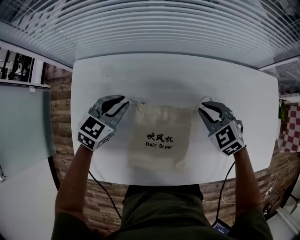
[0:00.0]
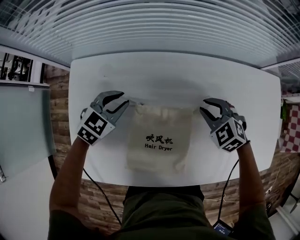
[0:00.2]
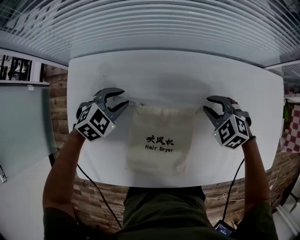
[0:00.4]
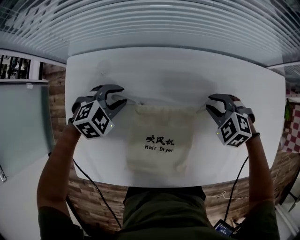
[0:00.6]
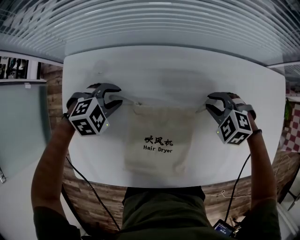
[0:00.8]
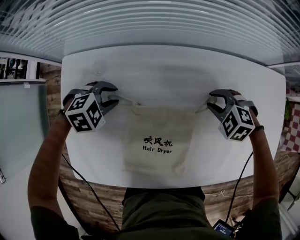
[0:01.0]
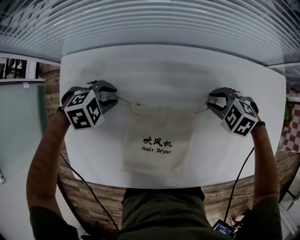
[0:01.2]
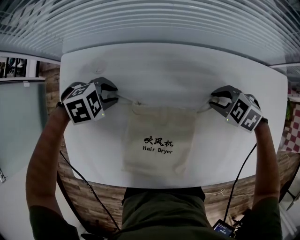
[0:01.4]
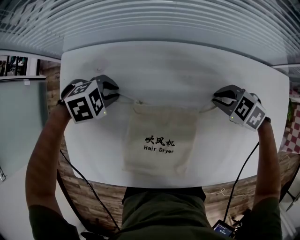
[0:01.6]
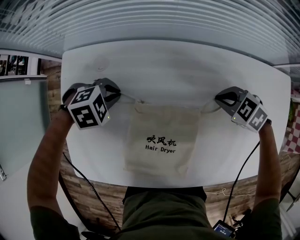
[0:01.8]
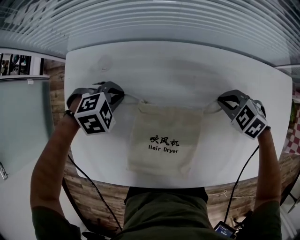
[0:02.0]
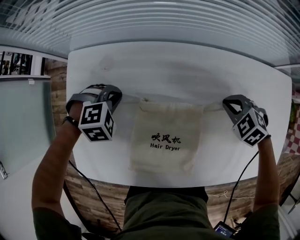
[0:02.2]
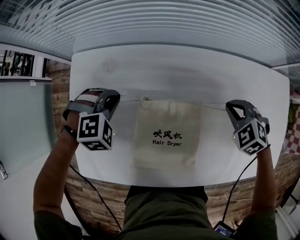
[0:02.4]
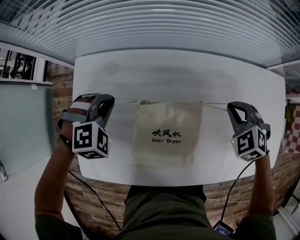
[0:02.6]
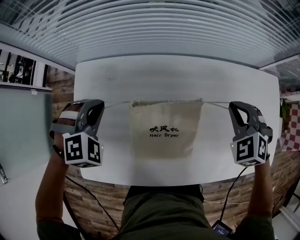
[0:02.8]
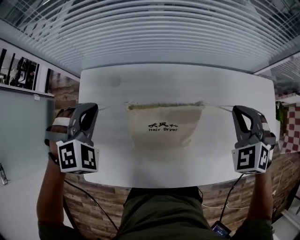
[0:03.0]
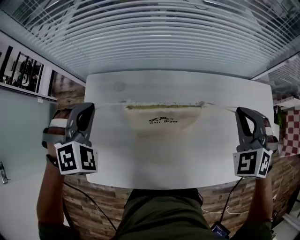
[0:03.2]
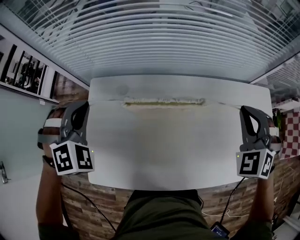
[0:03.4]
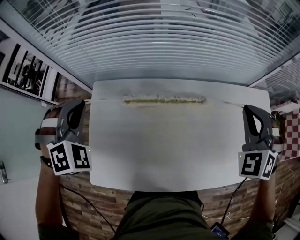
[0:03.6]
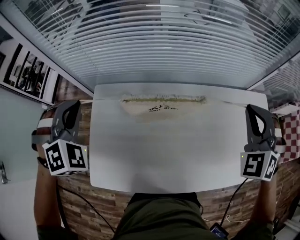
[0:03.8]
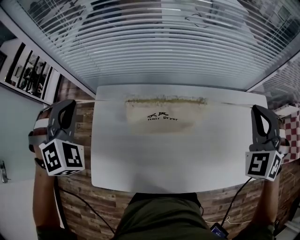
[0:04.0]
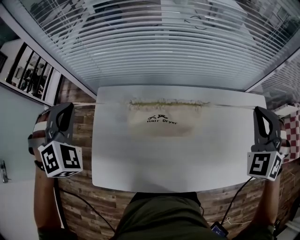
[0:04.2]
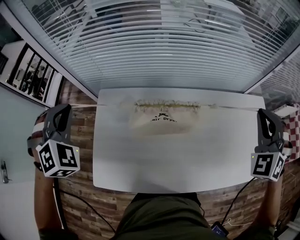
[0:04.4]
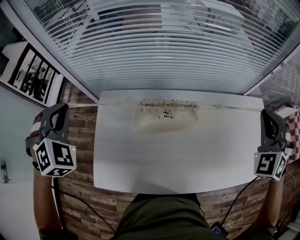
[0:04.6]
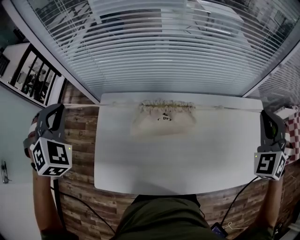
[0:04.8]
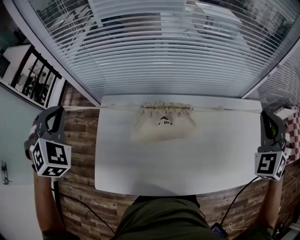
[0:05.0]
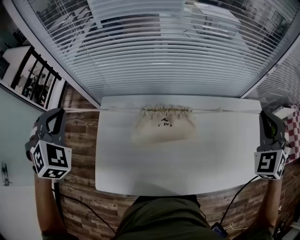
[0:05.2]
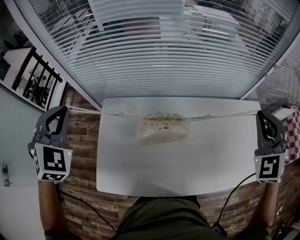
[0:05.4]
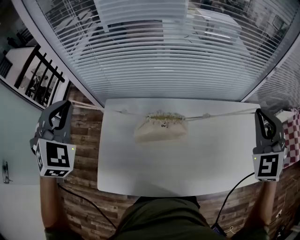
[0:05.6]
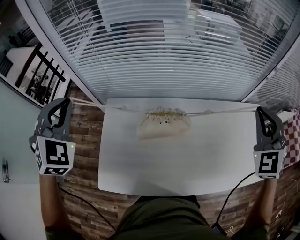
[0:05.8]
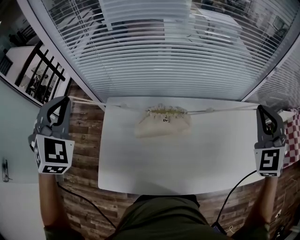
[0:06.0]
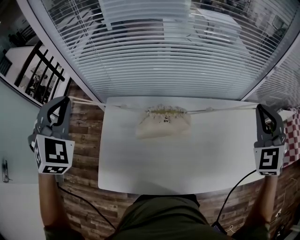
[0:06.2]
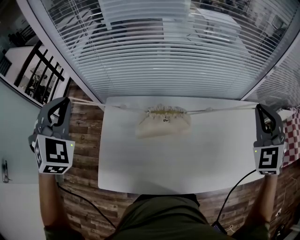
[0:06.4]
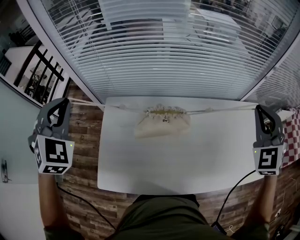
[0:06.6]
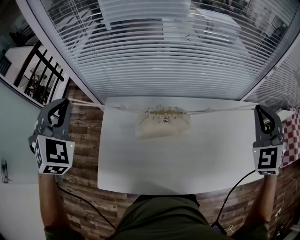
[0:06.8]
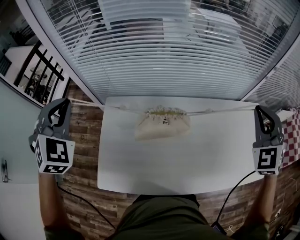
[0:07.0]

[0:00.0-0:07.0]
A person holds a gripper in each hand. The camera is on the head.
0:00.0 to 0:01.4: The grippers both shift downward by about 5 cm. The right gripper turns by approximately 30 degrees. Meanwhile the left gripper angles its fingers downward, by roughly 30 degrees.
0:01.4 to 0:02.8: Both grippers travel together upward, roughly 15 cm. The right gripper rotates roughly 40 degrees, and closes its fingers, while the left gripper swivels some 40 degrees, and closes.
0:02.8 to 0:04.2: The left gripper goes roughly 25 cm upward and to the left, and changes its angle by approximately 30 degrees. The right gripper shifts roughly 20 cm upward, and changes its angle by approximately 30 degrees.
0:04.2 to 0:05.6: Both grippers travel together upward, approximately 10 cm. The left gripper turns by about 20 degrees.
0:05.6 to 0:07.0: The grippers stay close to where they were, moving slightly.

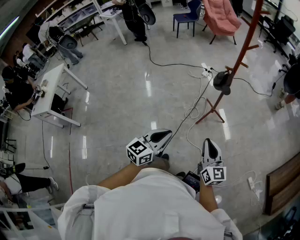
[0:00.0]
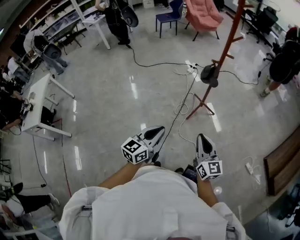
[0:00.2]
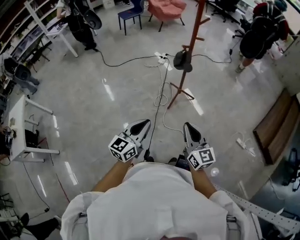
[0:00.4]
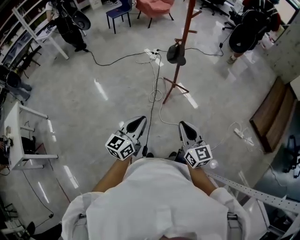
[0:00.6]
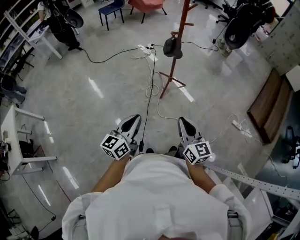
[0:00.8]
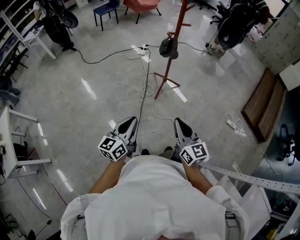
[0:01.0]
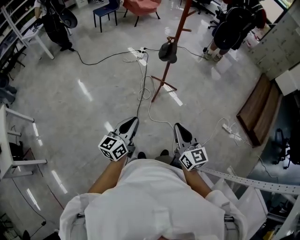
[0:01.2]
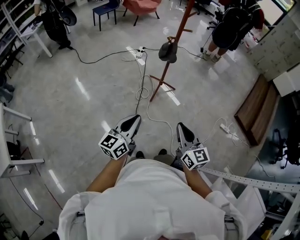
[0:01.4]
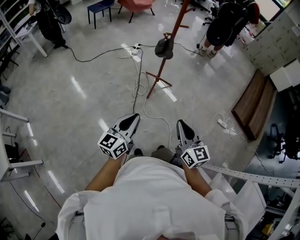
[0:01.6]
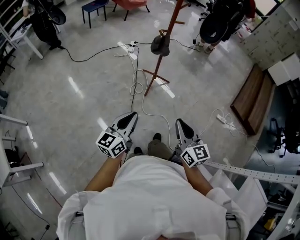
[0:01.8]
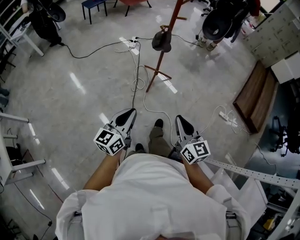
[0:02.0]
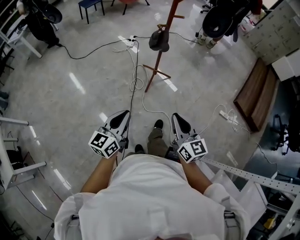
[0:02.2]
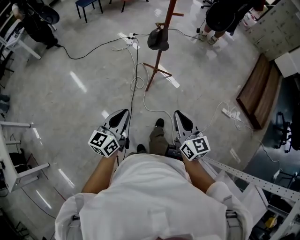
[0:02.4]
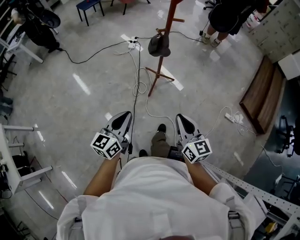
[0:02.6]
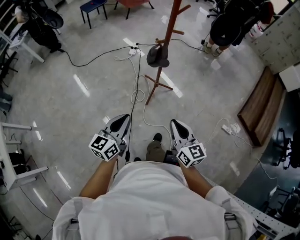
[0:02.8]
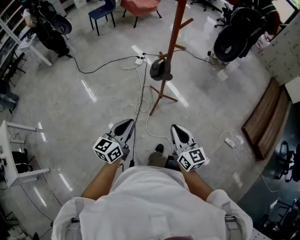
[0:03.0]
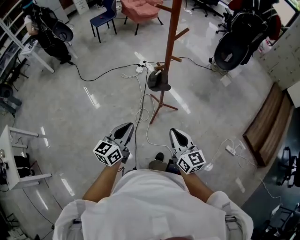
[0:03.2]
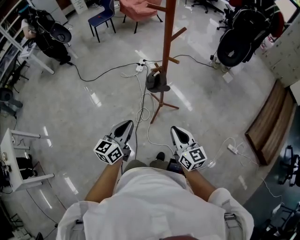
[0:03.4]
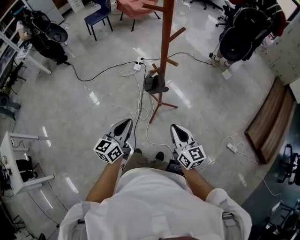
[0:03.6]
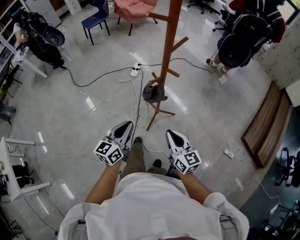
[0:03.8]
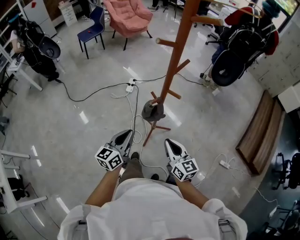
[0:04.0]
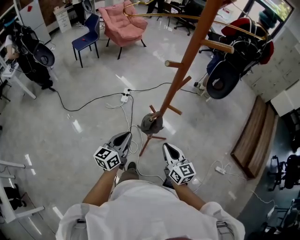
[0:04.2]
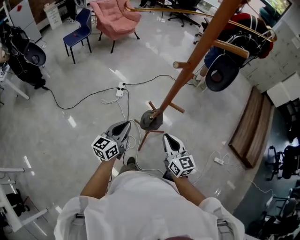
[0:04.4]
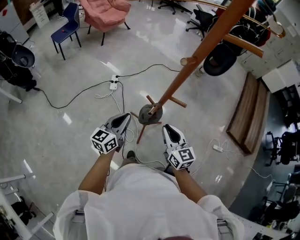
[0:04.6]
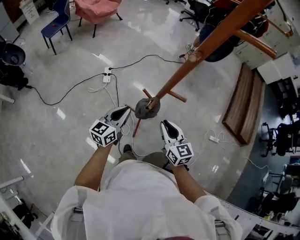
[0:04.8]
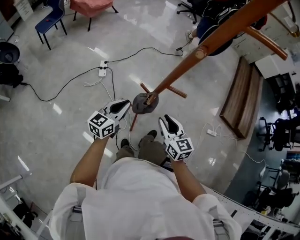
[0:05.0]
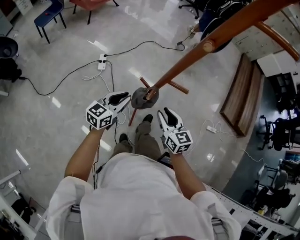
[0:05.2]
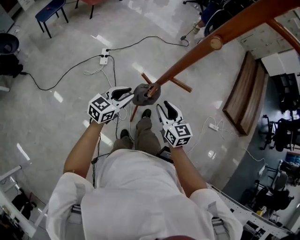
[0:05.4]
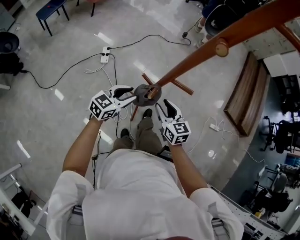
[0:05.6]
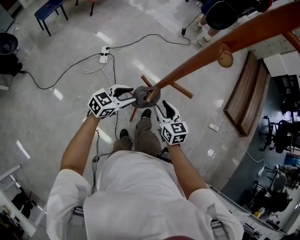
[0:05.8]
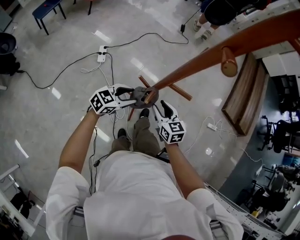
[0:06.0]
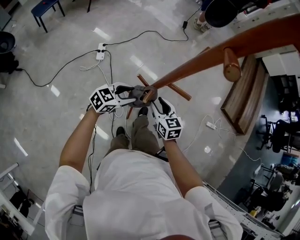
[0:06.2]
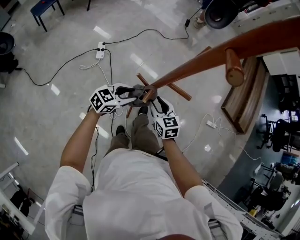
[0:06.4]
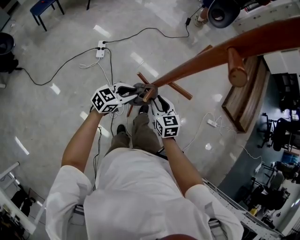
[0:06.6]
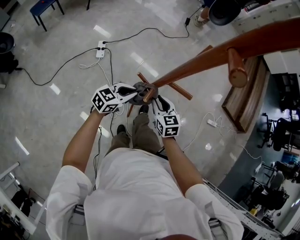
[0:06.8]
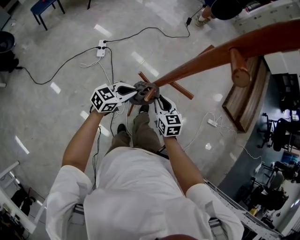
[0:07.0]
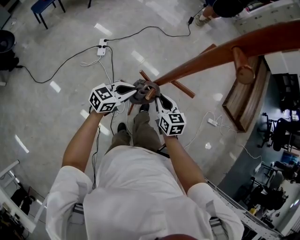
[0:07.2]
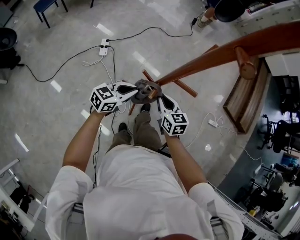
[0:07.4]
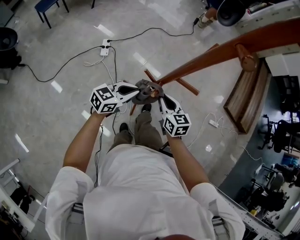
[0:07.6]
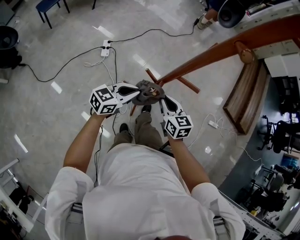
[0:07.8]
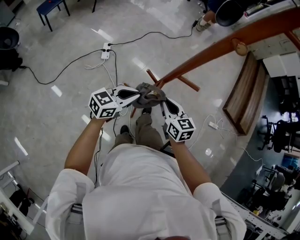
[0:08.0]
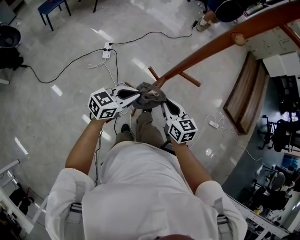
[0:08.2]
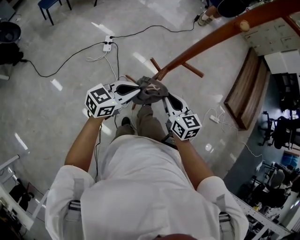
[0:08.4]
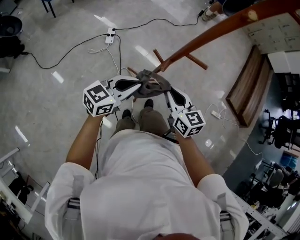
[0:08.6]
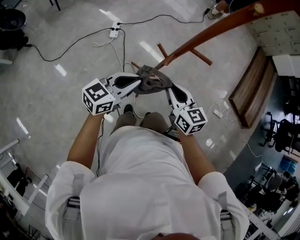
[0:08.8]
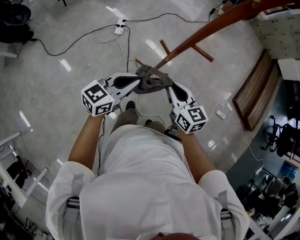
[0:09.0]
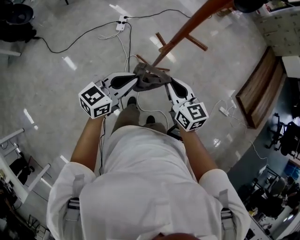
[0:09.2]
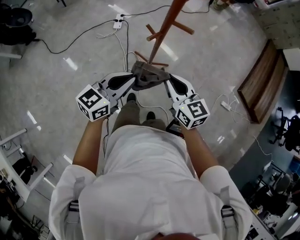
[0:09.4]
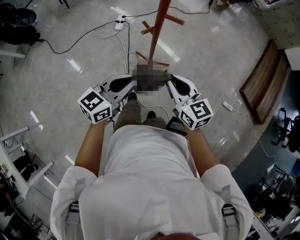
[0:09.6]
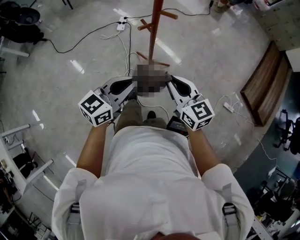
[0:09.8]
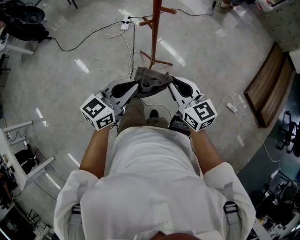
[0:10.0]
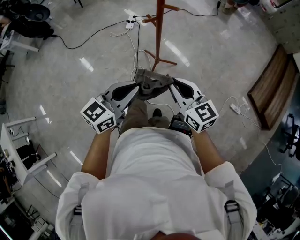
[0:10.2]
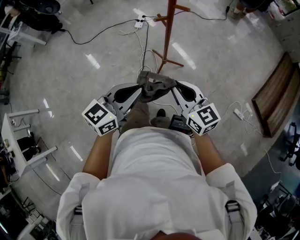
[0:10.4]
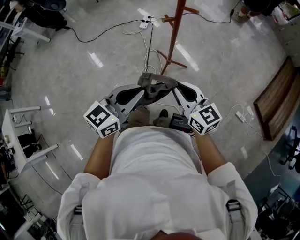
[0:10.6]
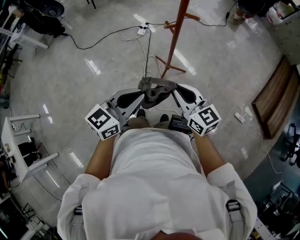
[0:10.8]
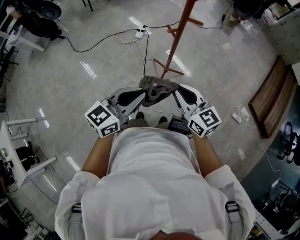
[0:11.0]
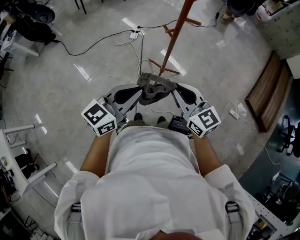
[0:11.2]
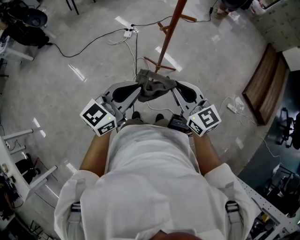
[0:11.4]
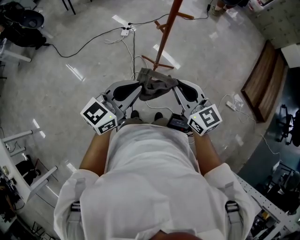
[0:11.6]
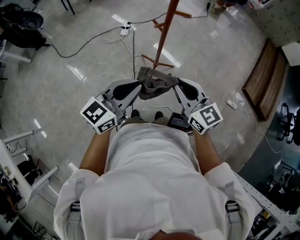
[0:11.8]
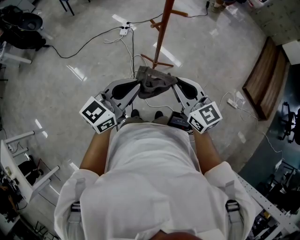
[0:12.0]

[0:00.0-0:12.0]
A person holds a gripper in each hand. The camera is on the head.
0:00.0 to 0:01.6: The left gripper moves to the left, about 10 cm, while the right gripper is displaced backward and to the left by some 15 cm.
0:01.6 to 0:03.0: Both grippers travel together forward, some 25 cm.
0:03.0 to 0:04.4: Both grippers travel together forward, approximately 35 cm.
0:04.4 to 0:06.0: Both grippers travel together downward, about 15 cm. The left gripper turns by about 50 degrees, and opens. Meanwhile the right gripper changes its angle by some 20 degrees, and opens its fingers.
0:06.0 to 0:07.6: The left gripper closes up, while the right gripper closes its fingers.
0:07.6 to 0:09.0: The two grippers go about 15 cm backward and upward.
0:09.0 to 0:10.4: Both grippers move backward and to the right, approximately 25 cm. The right gripper changes its angle by roughly 20 degrees.
0:10.4 to 0:12.0: The left gripper heads to the left, covering about 5 cm.

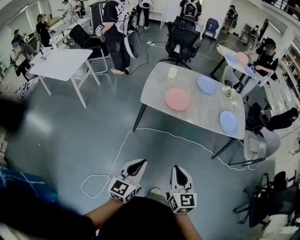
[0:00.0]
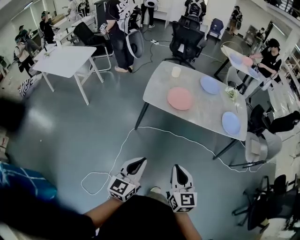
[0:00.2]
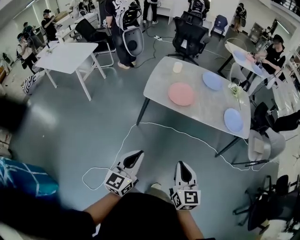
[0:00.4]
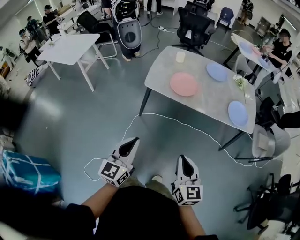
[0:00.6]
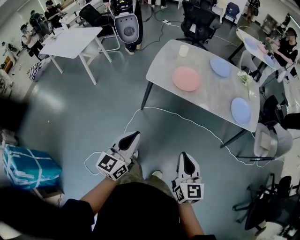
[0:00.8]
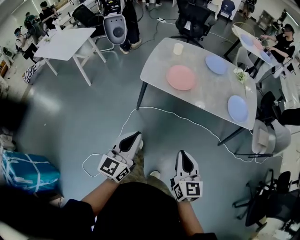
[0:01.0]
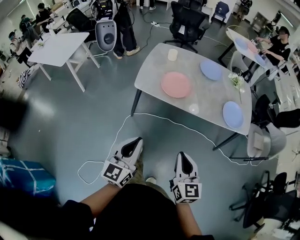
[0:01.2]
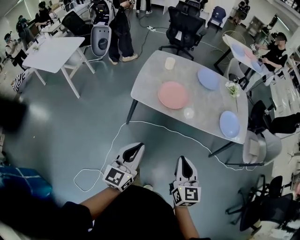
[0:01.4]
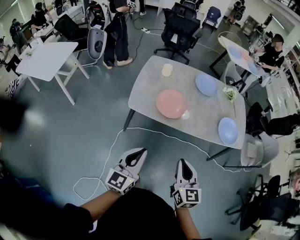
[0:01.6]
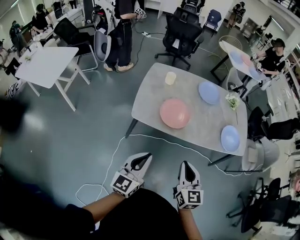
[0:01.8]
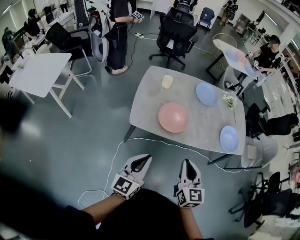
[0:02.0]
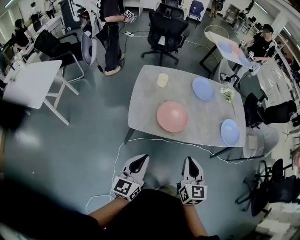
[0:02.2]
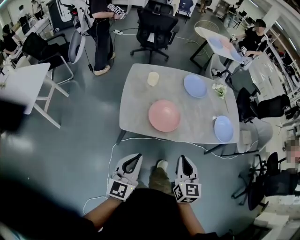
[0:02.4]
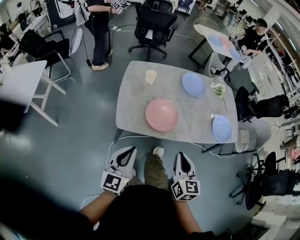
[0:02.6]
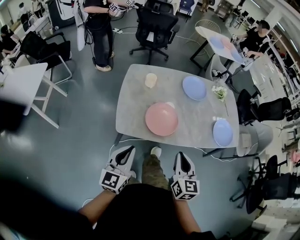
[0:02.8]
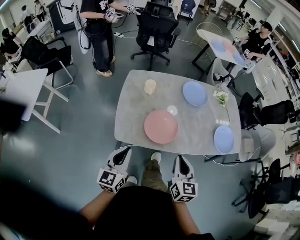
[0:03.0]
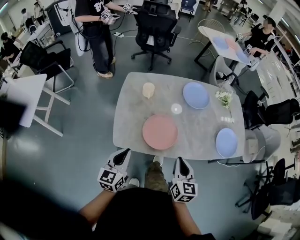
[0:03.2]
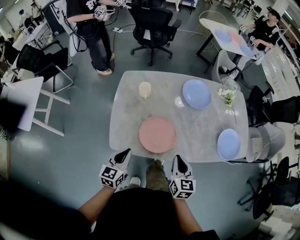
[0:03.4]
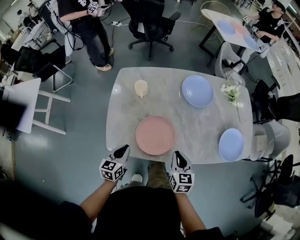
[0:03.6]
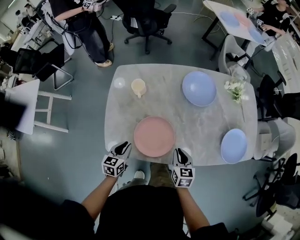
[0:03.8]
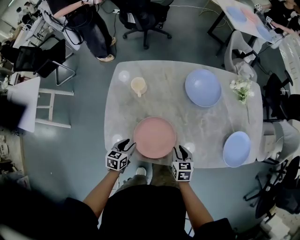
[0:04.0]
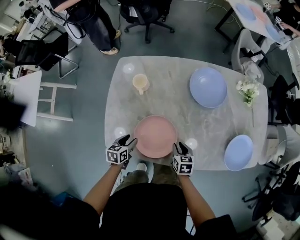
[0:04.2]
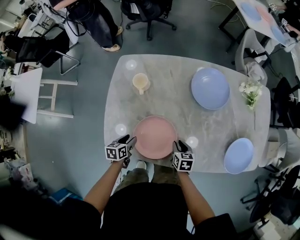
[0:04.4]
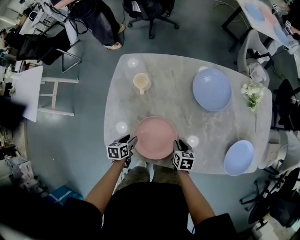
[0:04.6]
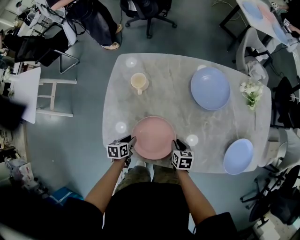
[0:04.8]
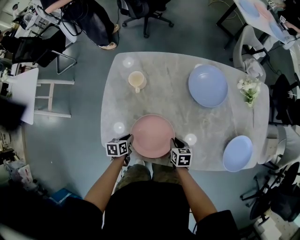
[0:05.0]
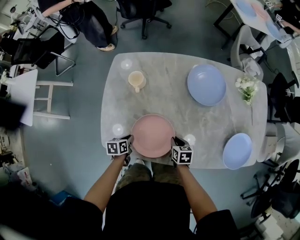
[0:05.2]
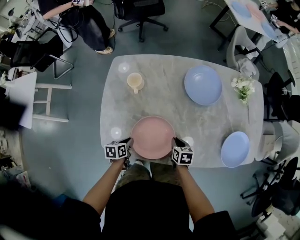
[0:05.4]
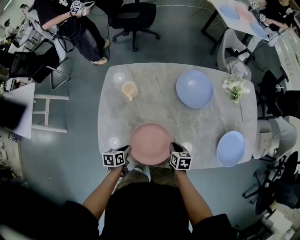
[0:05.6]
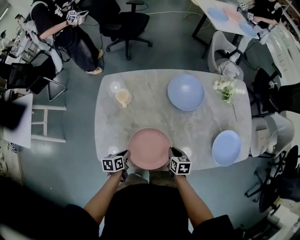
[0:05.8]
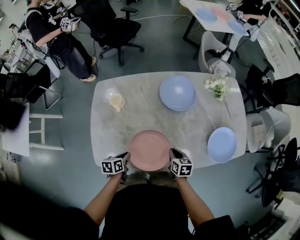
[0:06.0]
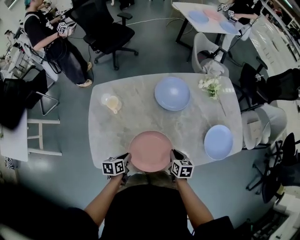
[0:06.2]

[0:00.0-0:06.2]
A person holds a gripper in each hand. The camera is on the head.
0:00.0 to 0:01.6: Both grippers travel together forward, approximately 20 cm.
0:01.6 to 0:03.2: Both grippers travel together forward, roughly 25 cm.
0:03.2 to 0:04.6: Both grippers move downward and forward, about 35 cm. The right gripper points its fingers approximately 30 degrees further downward, while the left gripper tilts its fingers approximately 40 degrees downward, and opens up.
0:04.6 to 0:06.2: The grippers both shift to the right and upward by some 15 cm. The left gripper closes up.
